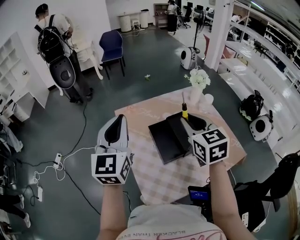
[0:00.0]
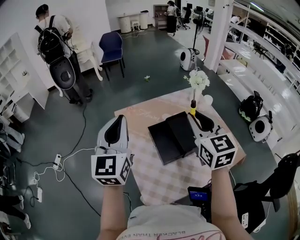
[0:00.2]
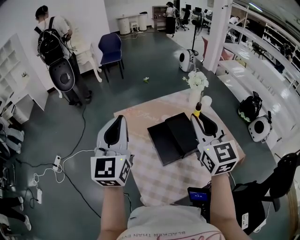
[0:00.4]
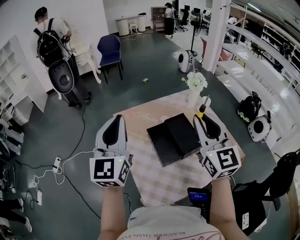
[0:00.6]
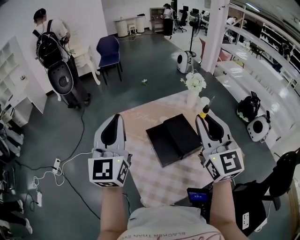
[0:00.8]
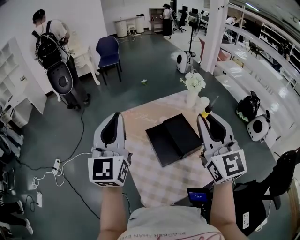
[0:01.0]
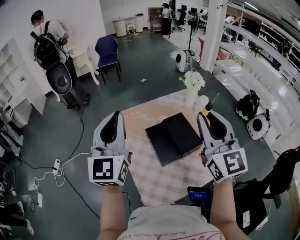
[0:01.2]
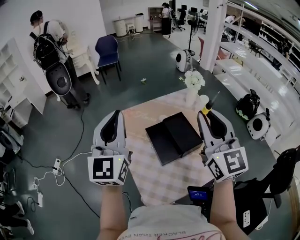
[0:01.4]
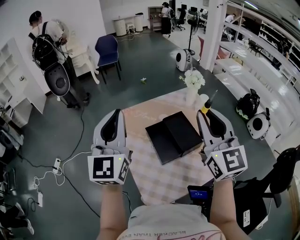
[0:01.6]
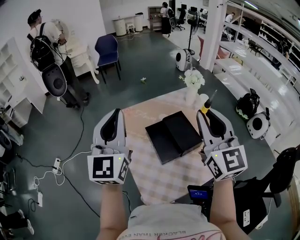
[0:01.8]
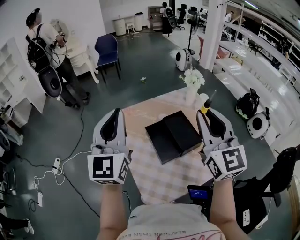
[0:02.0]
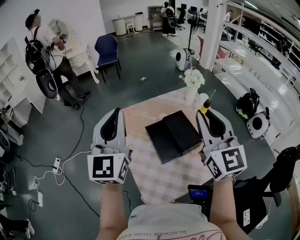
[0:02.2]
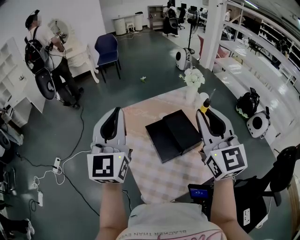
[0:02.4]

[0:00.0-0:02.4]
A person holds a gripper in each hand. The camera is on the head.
0:00.0 to 0:01.2: The right gripper moves upward and backward, approximately 15 cm, and rotates about 30 degrees.
0:01.2 to 0:02.4: Neither gripper changes place.

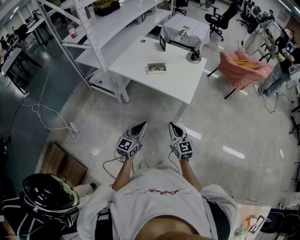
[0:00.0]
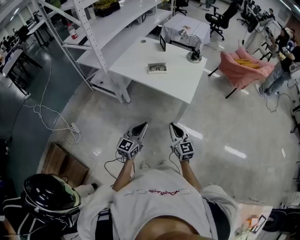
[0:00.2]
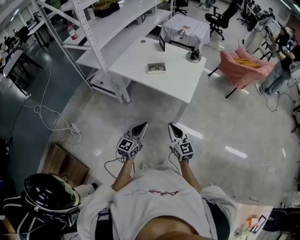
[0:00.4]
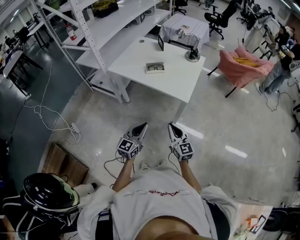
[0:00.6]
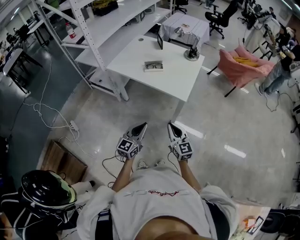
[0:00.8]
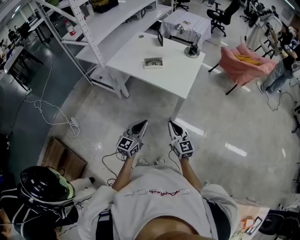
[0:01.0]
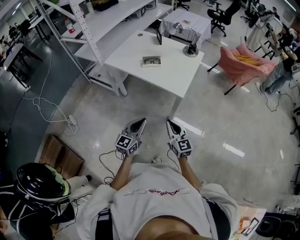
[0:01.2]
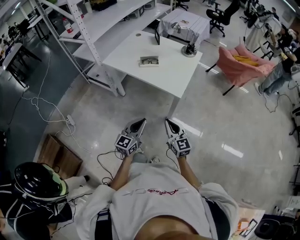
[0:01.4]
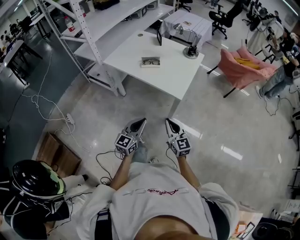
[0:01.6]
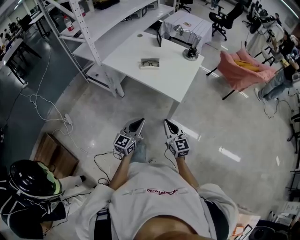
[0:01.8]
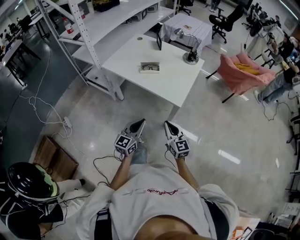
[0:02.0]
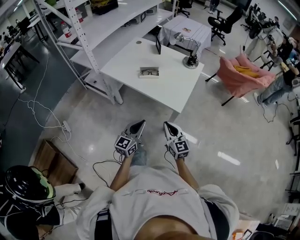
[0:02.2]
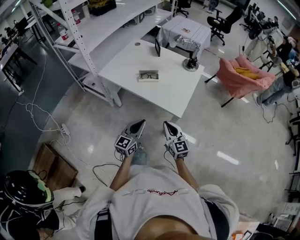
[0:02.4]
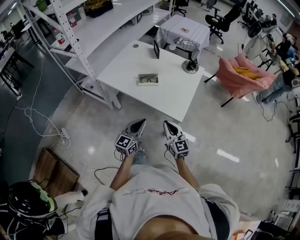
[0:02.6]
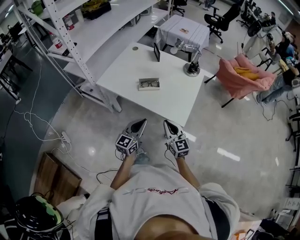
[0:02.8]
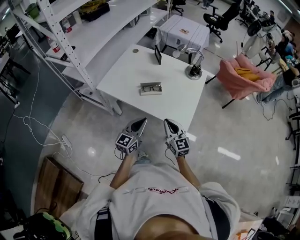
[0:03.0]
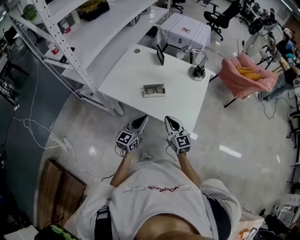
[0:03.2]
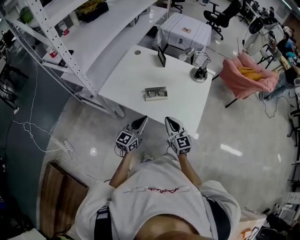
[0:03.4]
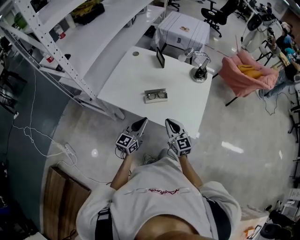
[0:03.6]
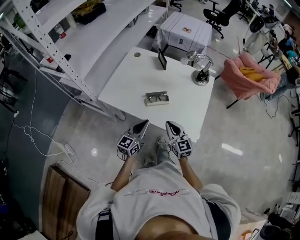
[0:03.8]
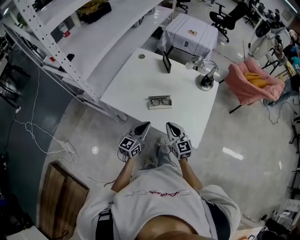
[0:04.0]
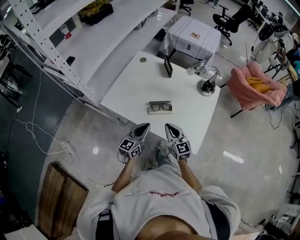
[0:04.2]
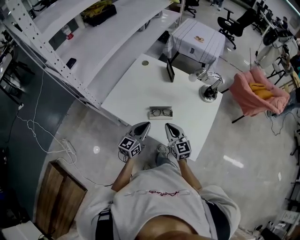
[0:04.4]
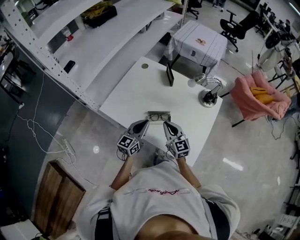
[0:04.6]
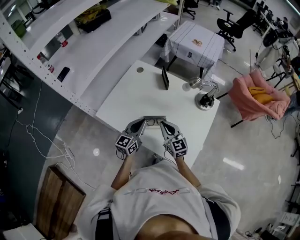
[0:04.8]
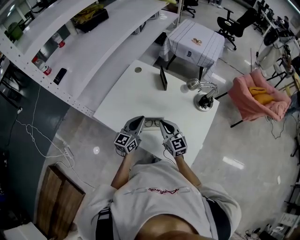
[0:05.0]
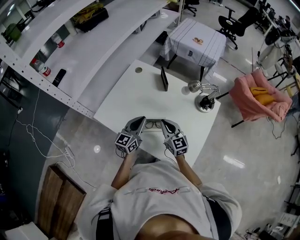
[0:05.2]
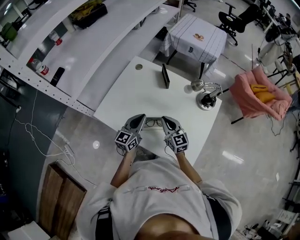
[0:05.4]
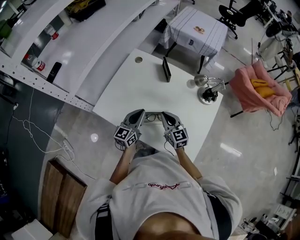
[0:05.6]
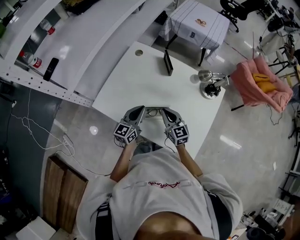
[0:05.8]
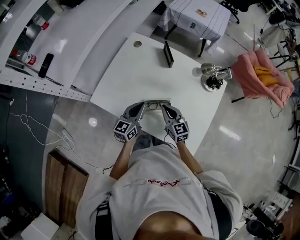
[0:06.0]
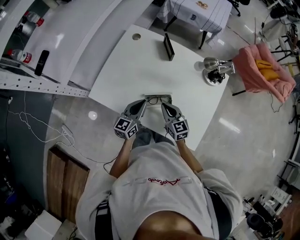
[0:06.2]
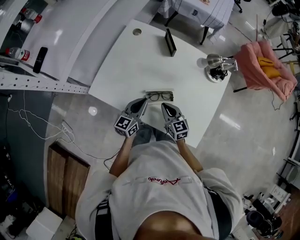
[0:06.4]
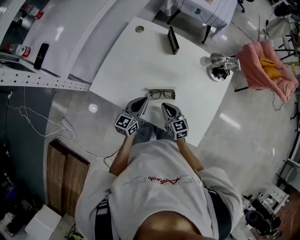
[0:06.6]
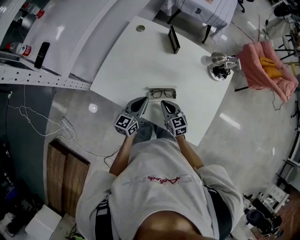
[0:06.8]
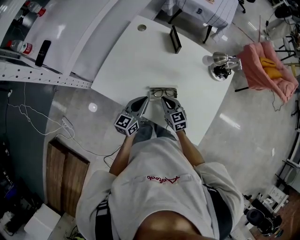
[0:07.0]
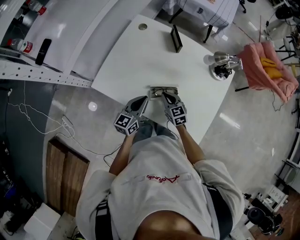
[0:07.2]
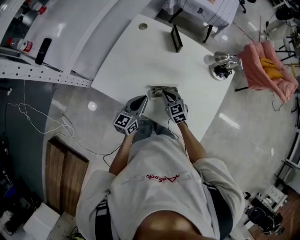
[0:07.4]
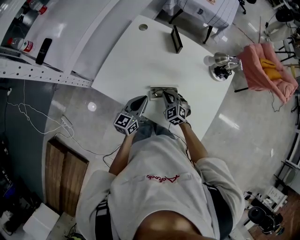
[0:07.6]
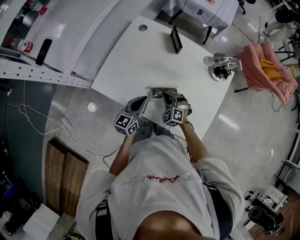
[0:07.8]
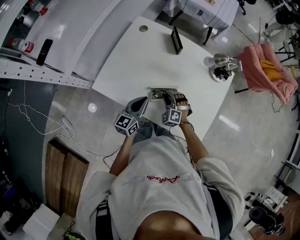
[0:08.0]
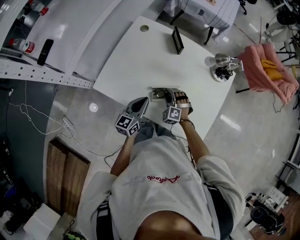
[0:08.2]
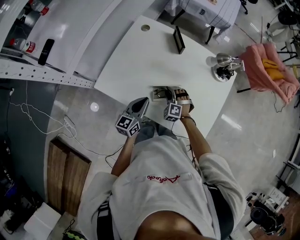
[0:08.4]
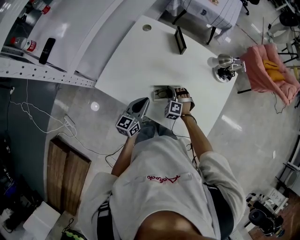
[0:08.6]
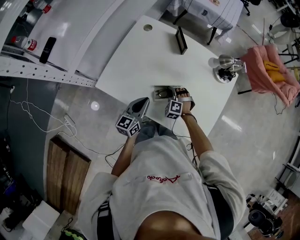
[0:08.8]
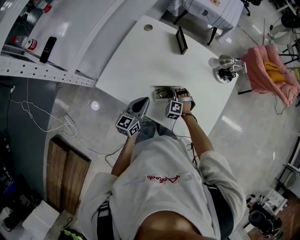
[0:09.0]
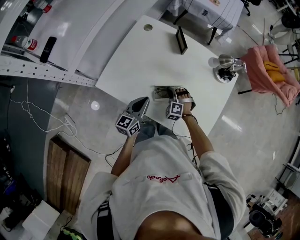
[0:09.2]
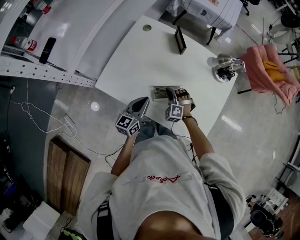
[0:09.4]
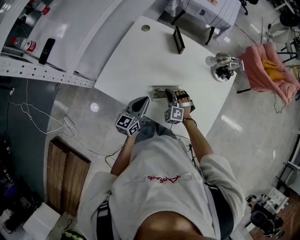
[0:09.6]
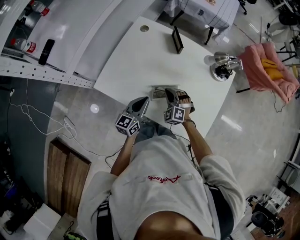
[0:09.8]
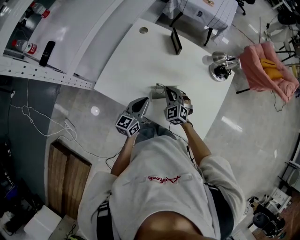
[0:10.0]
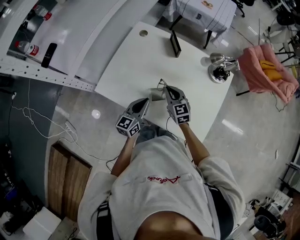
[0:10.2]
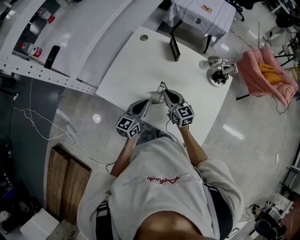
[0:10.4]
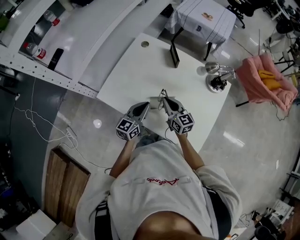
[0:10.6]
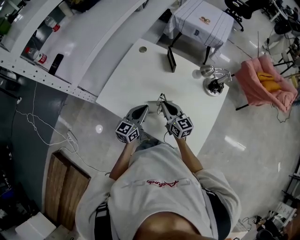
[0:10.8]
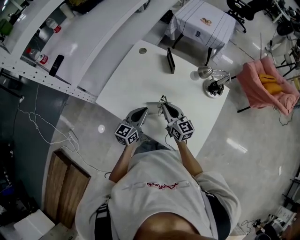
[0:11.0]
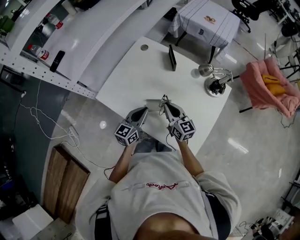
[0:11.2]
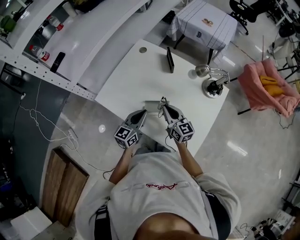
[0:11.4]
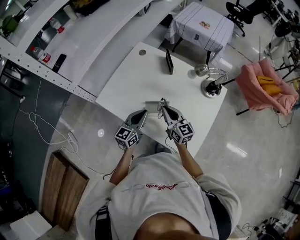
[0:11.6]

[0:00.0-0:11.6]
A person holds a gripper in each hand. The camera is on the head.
0:00.0 to 0:01.4: Both grippers move to the right, some 5 cm.
0:01.4 to 0:02.8: The two grippers go roughly 20 cm forward.
0:02.8 to 0:04.4: Both grippers travel together forward, approximately 20 cm.
0:04.4 to 0:05.8: The two grippers go about 10 cm forward.
0:05.8 to 0:07.2: The right gripper is displaced downward by approximately 10 cm, while the left gripper shifts by some 5 cm.
0:07.2 to 0:08.8: The right gripper heads downward, covering approximately 5 cm, rolls counterclockwise, seen from behind, by approximately 60 degrees, and opens, then closes once more.
0:08.8 to 0:10.2: The right gripper moves upward, roughly 15 cm, and rolls clockwise, seen from behind, by about 60 degrees.
0:10.2 to 0:11.6: The right gripper is displaced upward by roughly 5 cm, and rotates about 20 degrees; the left gripper changes place by about 5 cm.

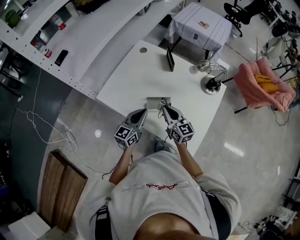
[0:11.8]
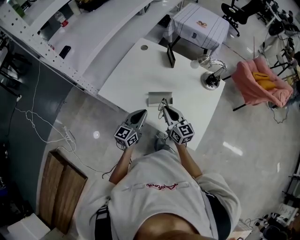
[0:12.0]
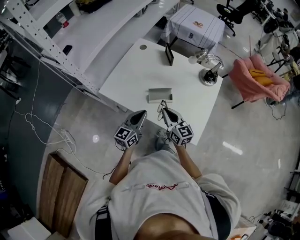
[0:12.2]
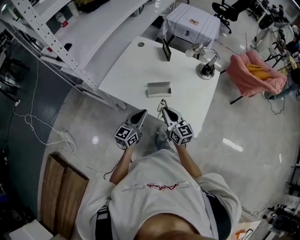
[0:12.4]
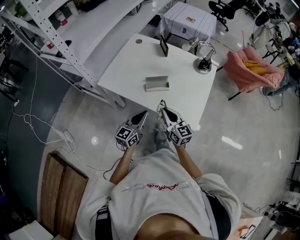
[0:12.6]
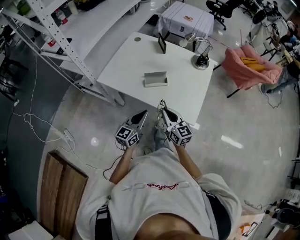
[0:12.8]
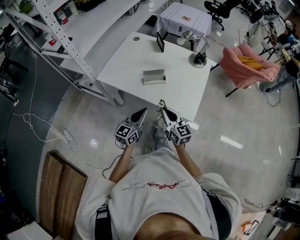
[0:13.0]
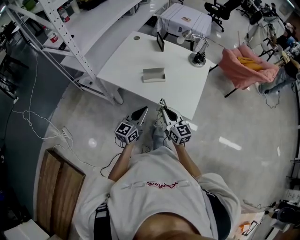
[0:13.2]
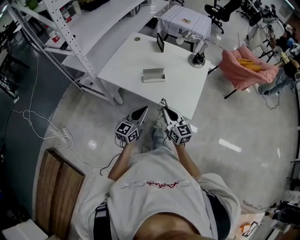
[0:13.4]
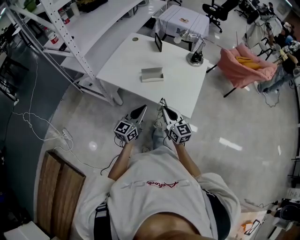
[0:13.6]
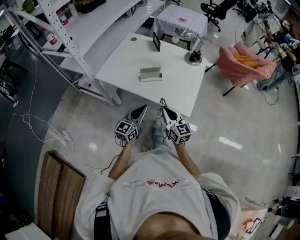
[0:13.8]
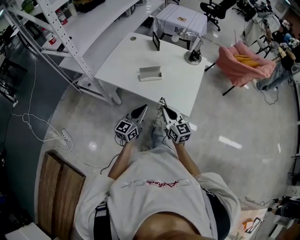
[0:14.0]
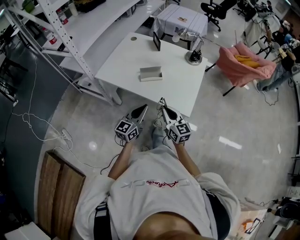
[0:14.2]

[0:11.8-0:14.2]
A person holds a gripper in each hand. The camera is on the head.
0:11.8 to 0:13.0: The grippers both shift backward by approximately 20 cm.
0:13.0 to 0:14.2: The grippers stay close to where they were, moving slightly.

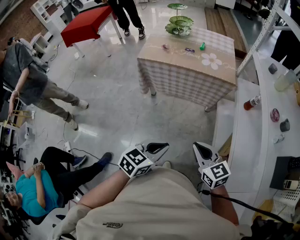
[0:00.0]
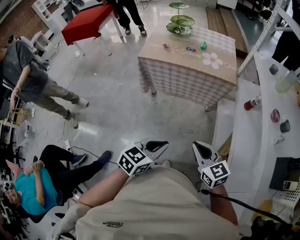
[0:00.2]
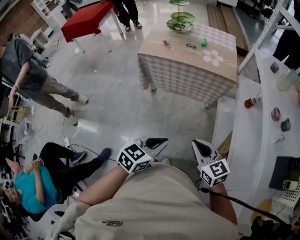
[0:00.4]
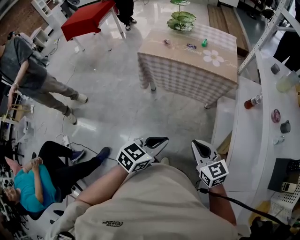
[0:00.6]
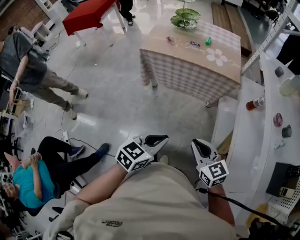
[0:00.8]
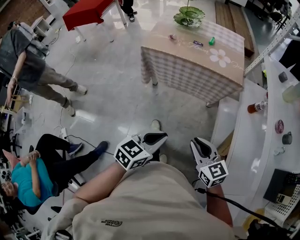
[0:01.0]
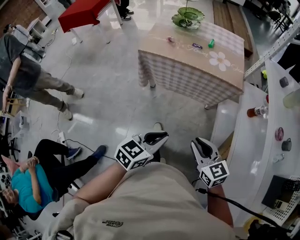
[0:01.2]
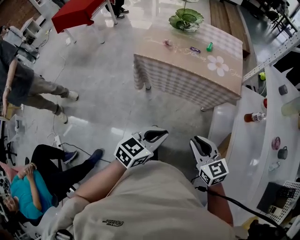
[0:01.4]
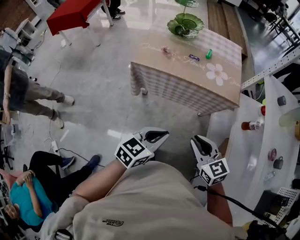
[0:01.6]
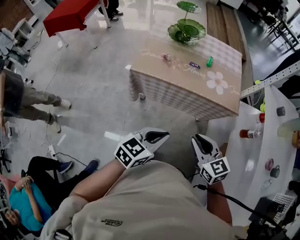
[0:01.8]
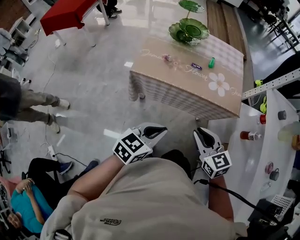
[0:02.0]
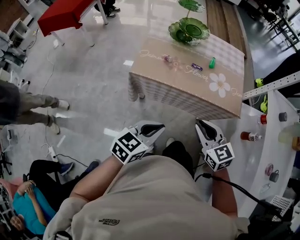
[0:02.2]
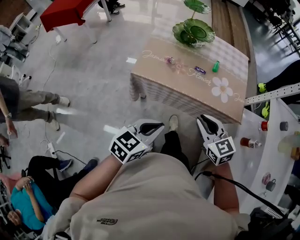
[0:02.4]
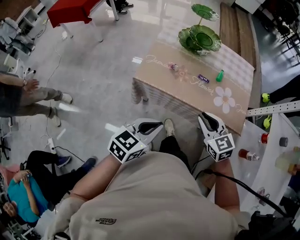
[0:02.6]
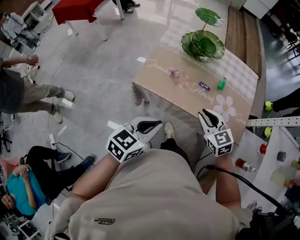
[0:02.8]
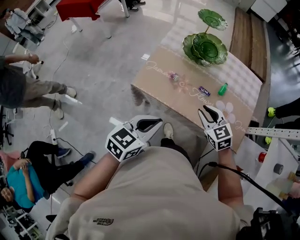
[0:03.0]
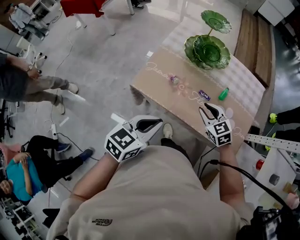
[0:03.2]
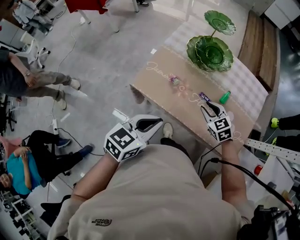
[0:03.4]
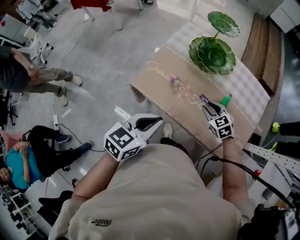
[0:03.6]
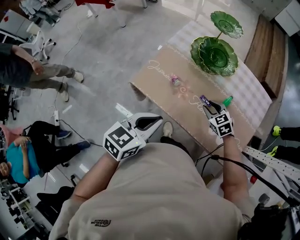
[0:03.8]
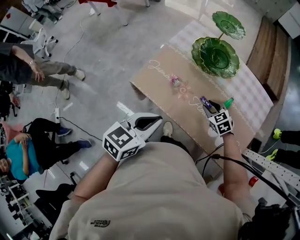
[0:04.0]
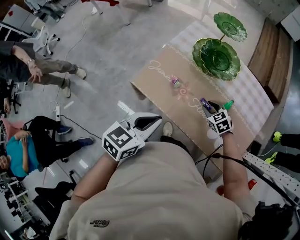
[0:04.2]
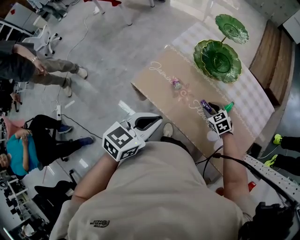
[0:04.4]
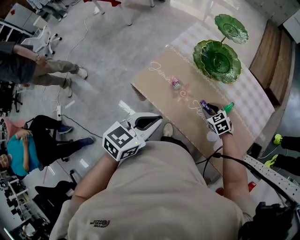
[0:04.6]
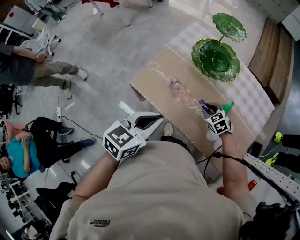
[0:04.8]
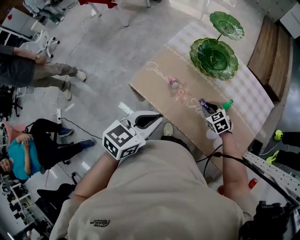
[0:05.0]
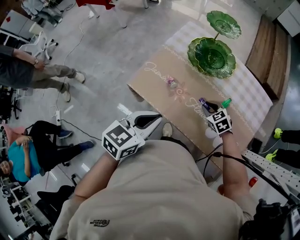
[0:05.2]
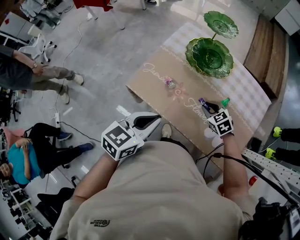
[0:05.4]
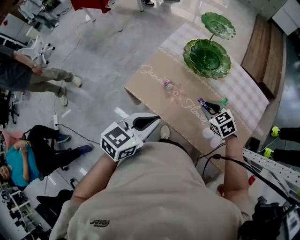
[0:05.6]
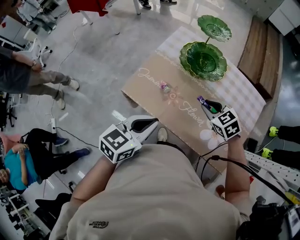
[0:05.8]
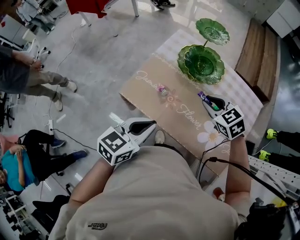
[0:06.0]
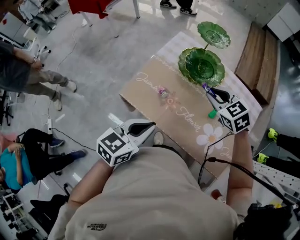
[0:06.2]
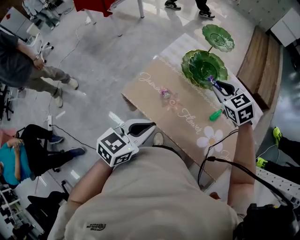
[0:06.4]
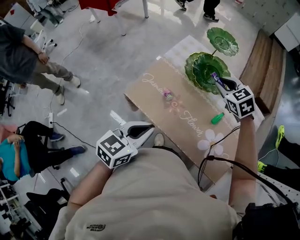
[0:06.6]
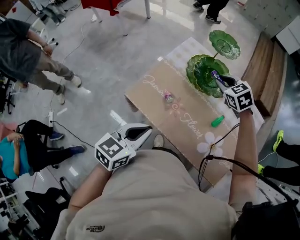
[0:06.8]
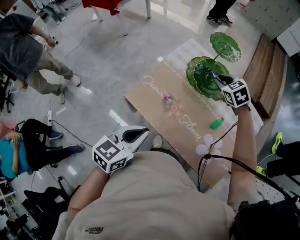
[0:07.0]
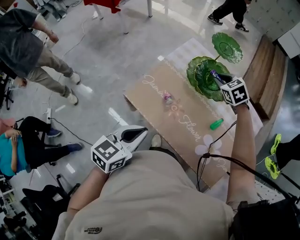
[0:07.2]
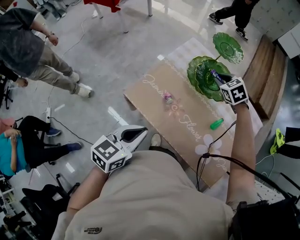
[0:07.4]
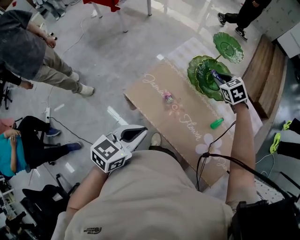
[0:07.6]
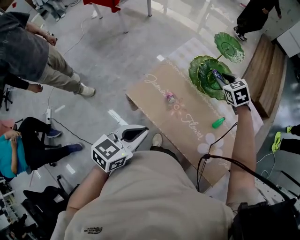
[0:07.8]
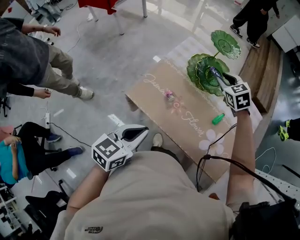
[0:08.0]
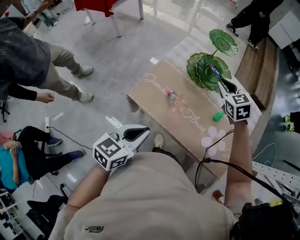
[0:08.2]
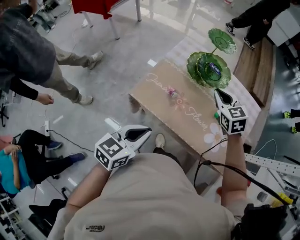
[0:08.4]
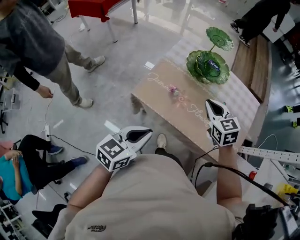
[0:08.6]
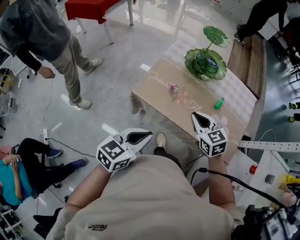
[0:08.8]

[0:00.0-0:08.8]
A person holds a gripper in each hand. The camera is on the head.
0:00.0 to 0:01.4: The two grippers go approximately 15 cm forward.
0:01.4 to 0:03.0: Both grippers travel together forward, some 40 cm. The right gripper turns by about 20 degrees.
0:03.0 to 0:04.4: The right gripper travels downward and forward by roughly 20 cm, and rotates about 20 degrees. Meanwhile the left gripper goes approximately 10 cm forward.
0:04.4 to 0:05.8: The right gripper shifts some 15 cm upward.
0:05.8 to 0:07.4: The right gripper travels forward by roughly 20 cm.
0:07.4 to 0:08.8: The right gripper travels backward by roughly 35 cm, and rotates some 30 degrees. Meanwhile the left gripper goes about 10 cm backward.
